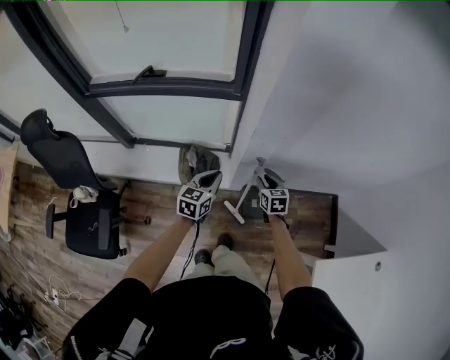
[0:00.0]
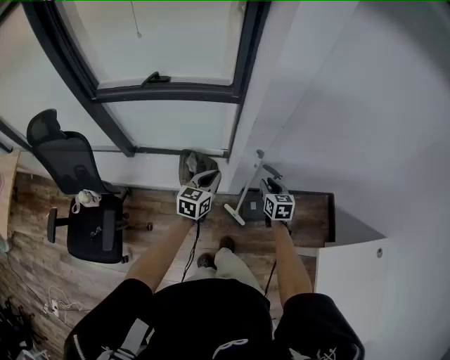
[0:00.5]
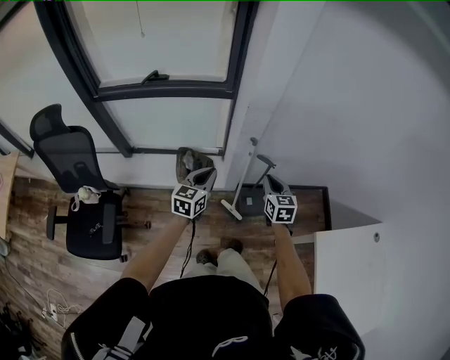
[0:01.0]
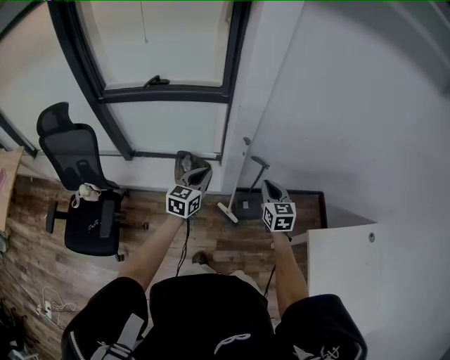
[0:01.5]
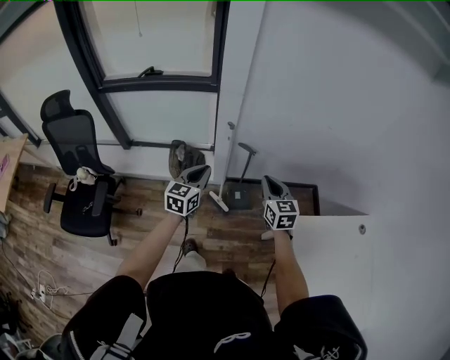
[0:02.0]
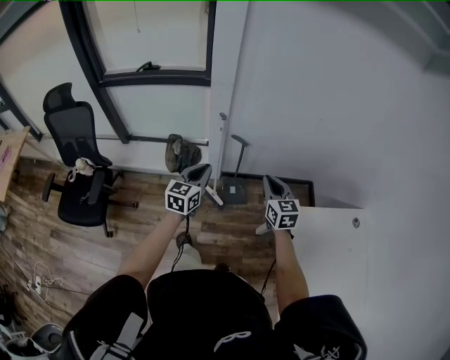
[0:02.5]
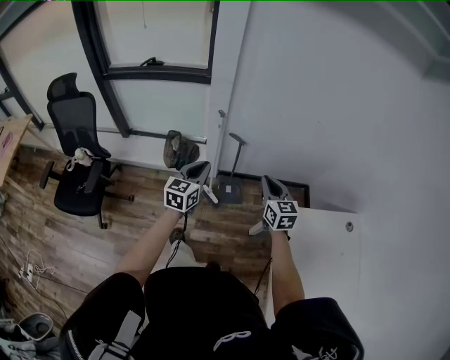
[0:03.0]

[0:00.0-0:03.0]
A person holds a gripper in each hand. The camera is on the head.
0:00.0 to 0:01.5: Both grippers move backward and upward, about 25 cm. The right gripper swivels about 20 degrees, and closes its fingers.
0:01.5 to 0:03.0: Both grippers travel together to the right and backward, roughly 25 cm.

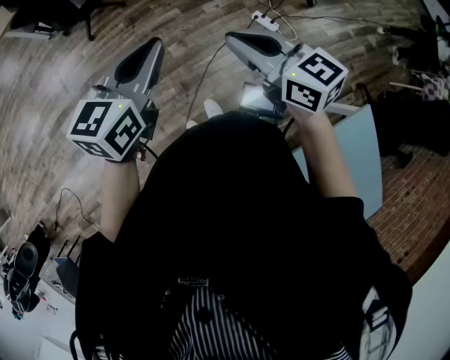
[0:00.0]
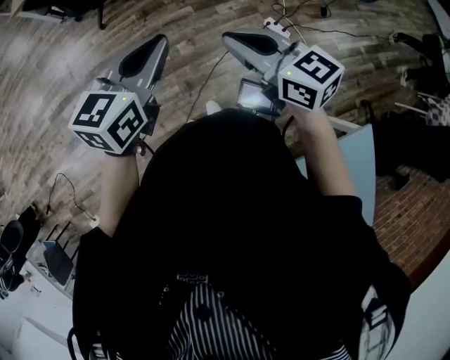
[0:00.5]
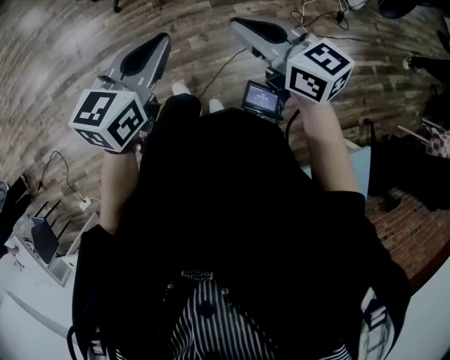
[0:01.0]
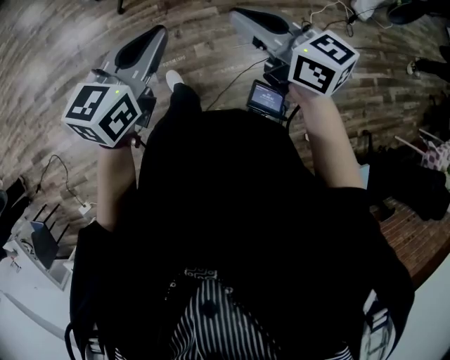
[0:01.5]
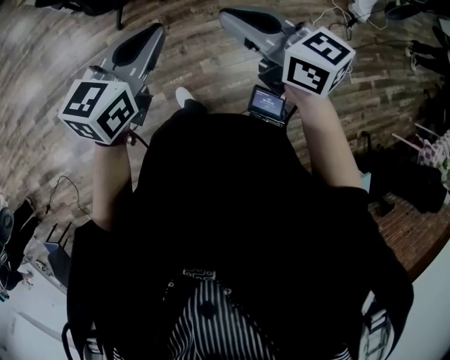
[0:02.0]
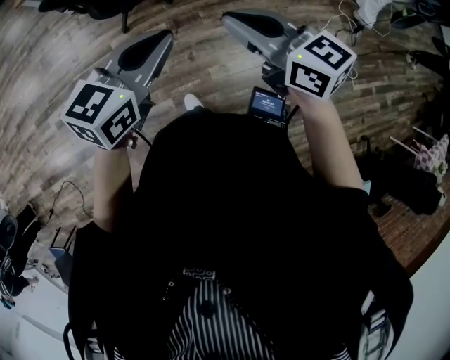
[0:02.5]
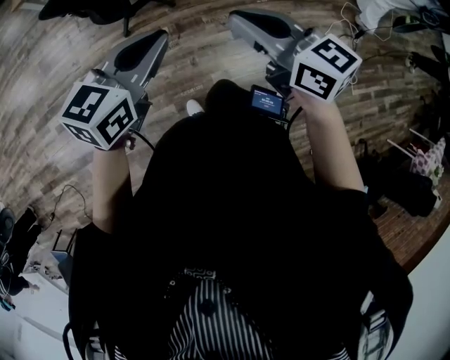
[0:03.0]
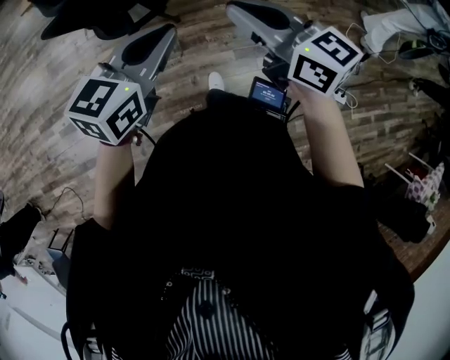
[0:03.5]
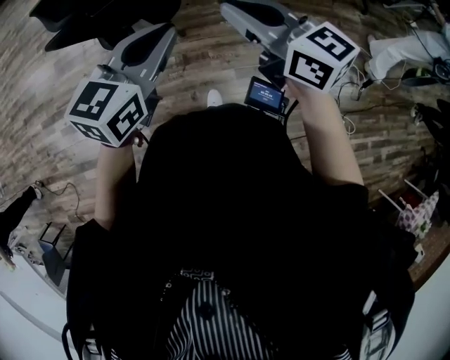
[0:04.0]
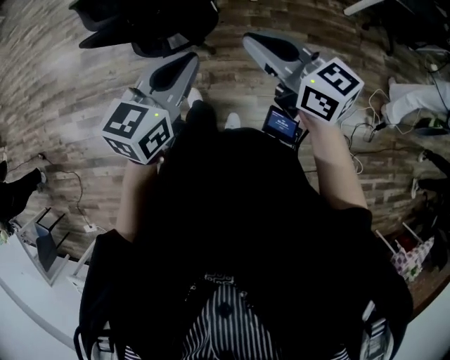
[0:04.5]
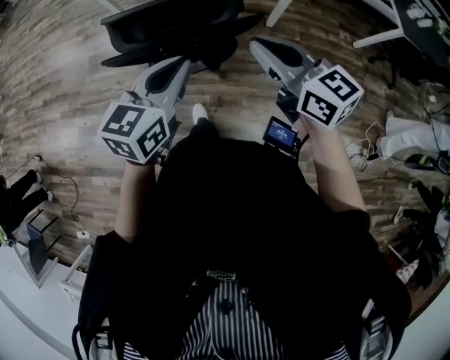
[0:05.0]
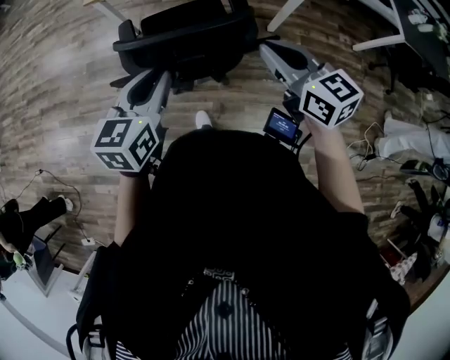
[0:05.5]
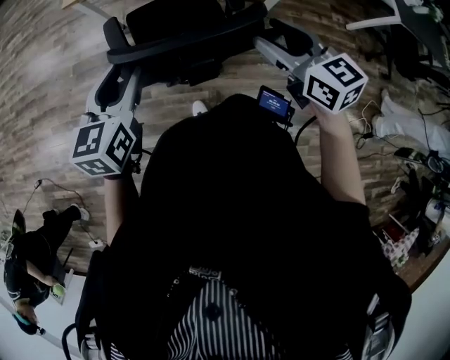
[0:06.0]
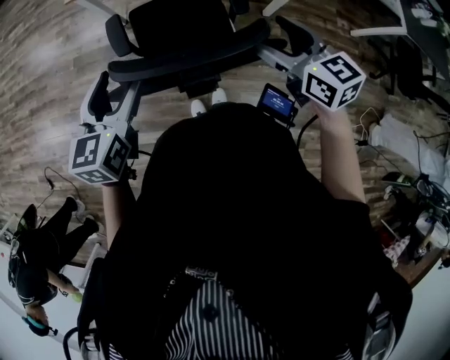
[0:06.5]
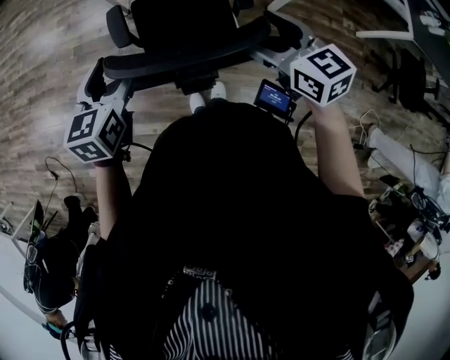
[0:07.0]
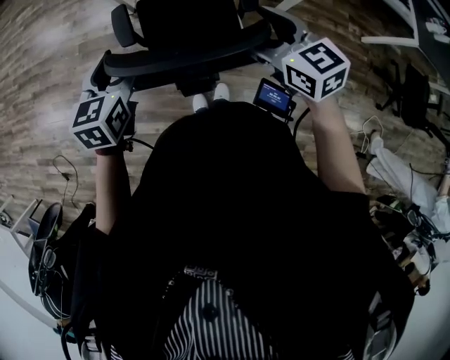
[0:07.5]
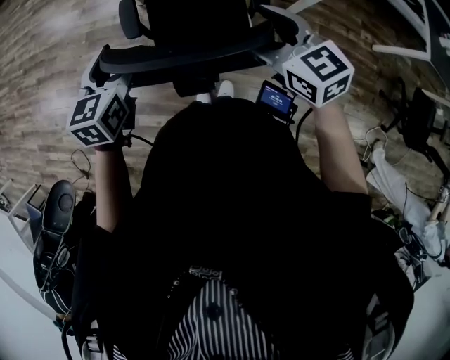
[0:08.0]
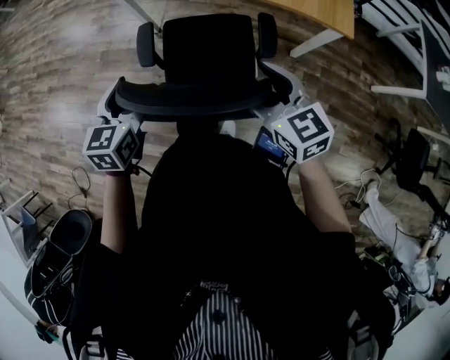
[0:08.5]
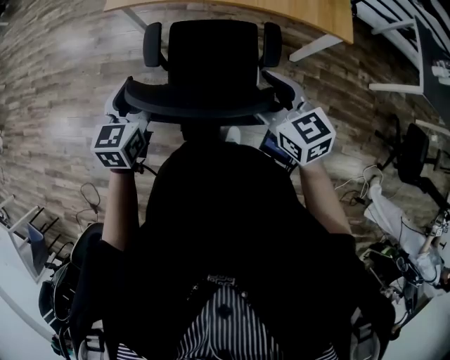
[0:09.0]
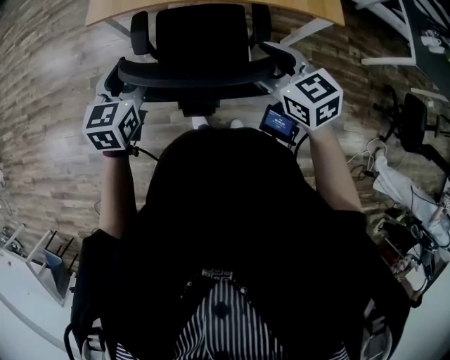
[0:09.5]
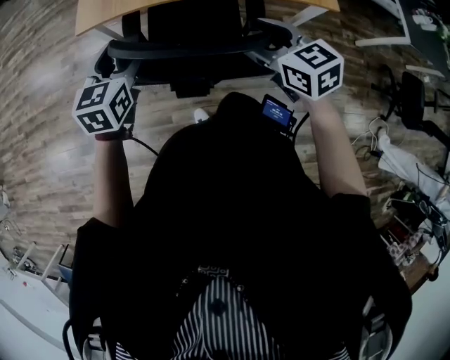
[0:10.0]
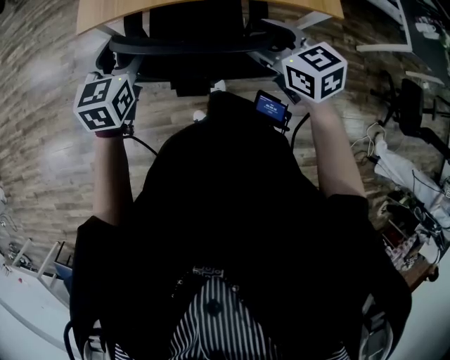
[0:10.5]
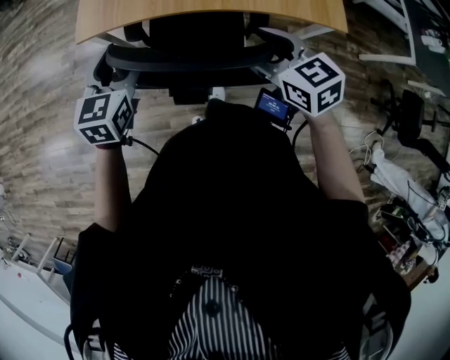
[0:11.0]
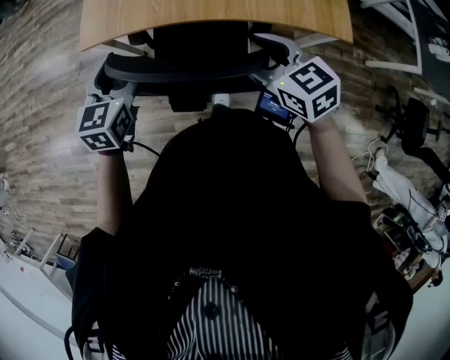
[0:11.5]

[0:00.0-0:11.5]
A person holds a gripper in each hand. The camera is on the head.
0:00.0 to 0:02.0: The grippers both shift forward and to the left by about 40 cm.
0:02.0 to 0:04.0: Both grippers move forward, about 35 cm.
0:04.0 to 0:06.0: The left gripper moves forward and to the left, approximately 50 cm, turns by roughly 30 degrees, and opens up; the right gripper travels forward by about 35 cm, and opens.
0:06.0 to 0:07.5: Both grippers travel together forward, roughly 5 cm. The left gripper opens its fingers. The right gripper opens up.
0:07.5 to 0:09.5: The two grippers go approximately 20 cm forward.
0:09.5 to 0:11.5: Both grippers travel together forward, roughly 20 cm.

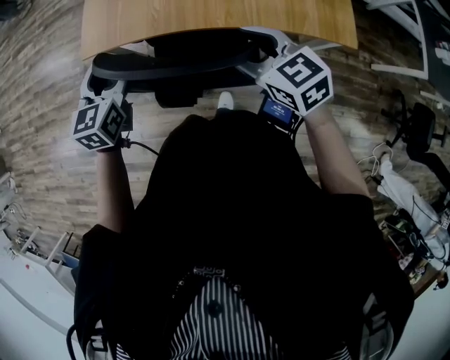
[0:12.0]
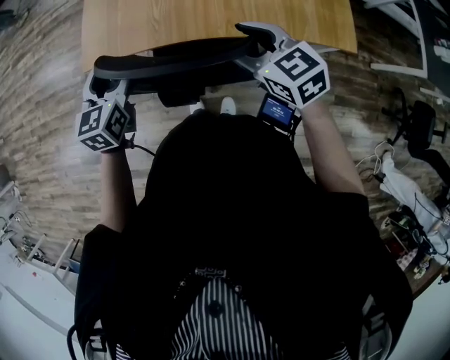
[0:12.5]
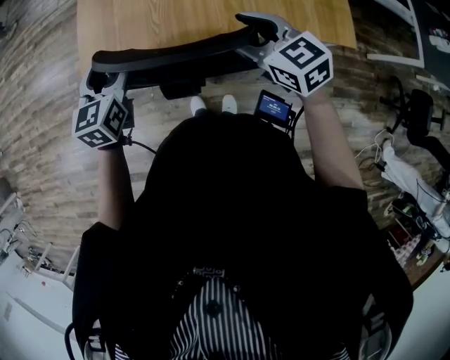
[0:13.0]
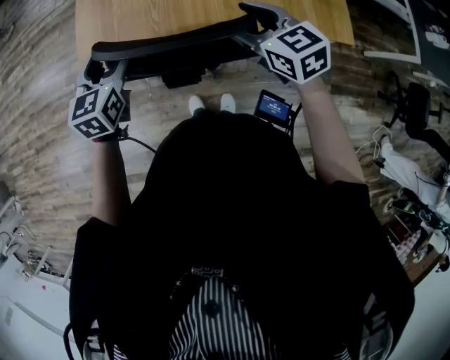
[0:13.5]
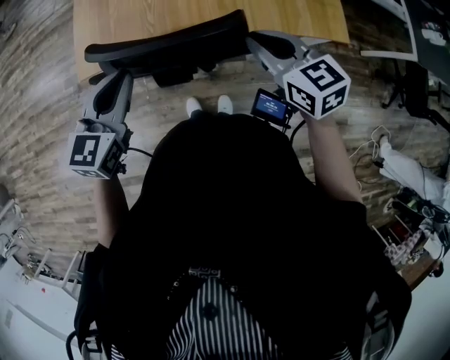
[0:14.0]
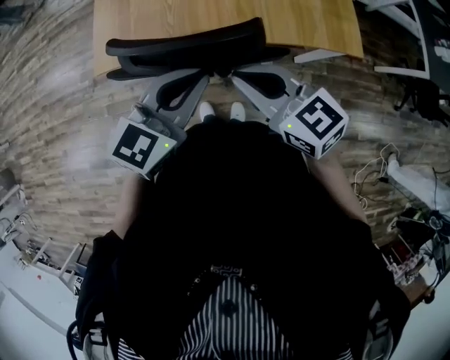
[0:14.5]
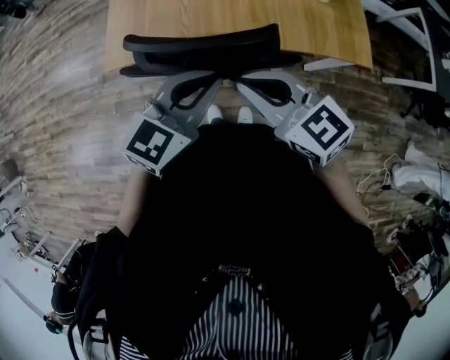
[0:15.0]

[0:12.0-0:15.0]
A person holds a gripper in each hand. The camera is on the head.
0:12.0 to 0:13.5: The grippers both shift forward by about 10 cm.
0:13.5 to 0:15.0: The left gripper moves to the right, backward and upward, some 20 cm, swivels about 30 degrees, and closes up. The right gripper is displaced backward, upward and to the left by roughly 15 cm, and closes.

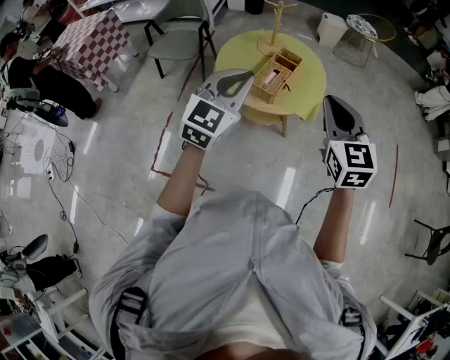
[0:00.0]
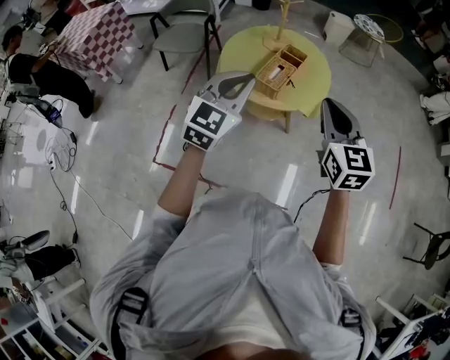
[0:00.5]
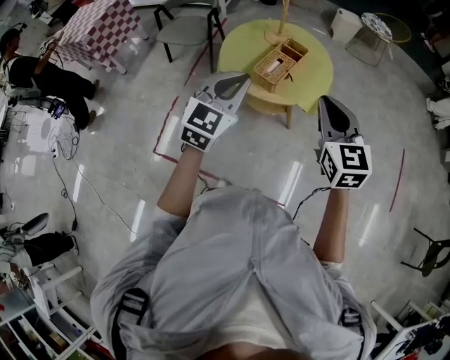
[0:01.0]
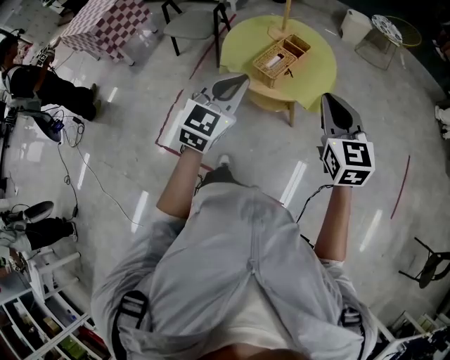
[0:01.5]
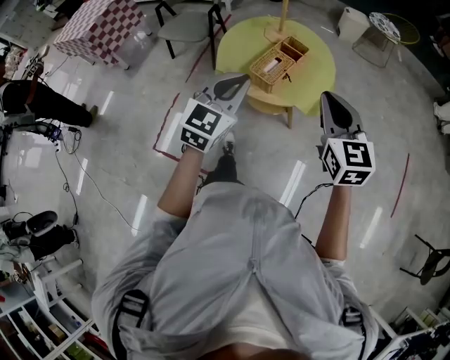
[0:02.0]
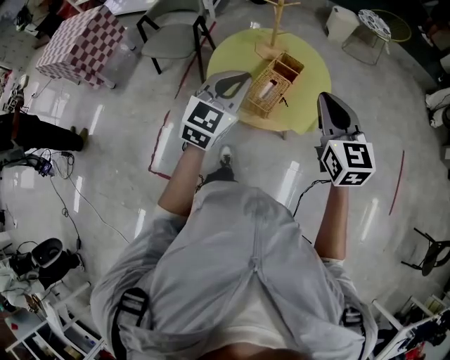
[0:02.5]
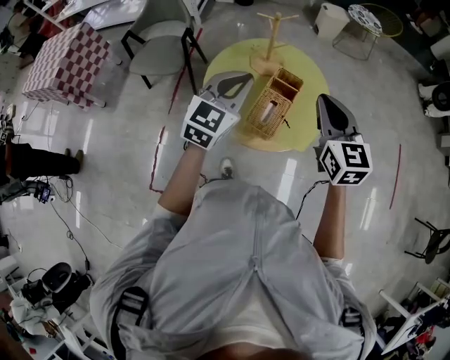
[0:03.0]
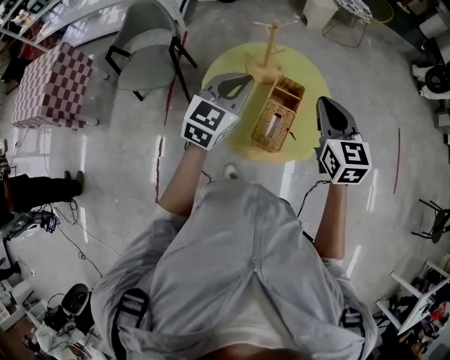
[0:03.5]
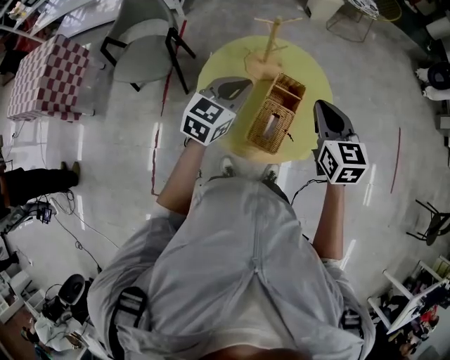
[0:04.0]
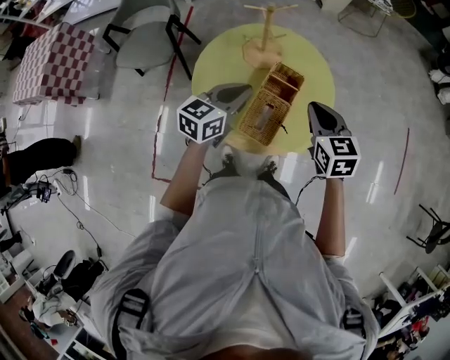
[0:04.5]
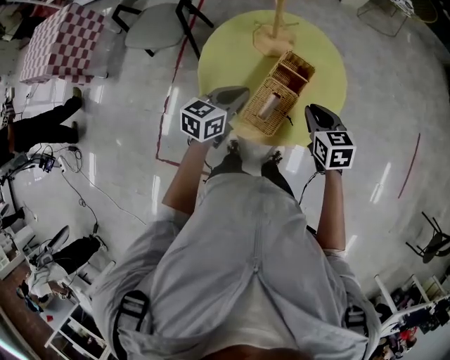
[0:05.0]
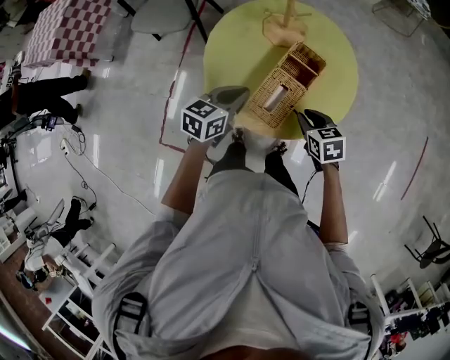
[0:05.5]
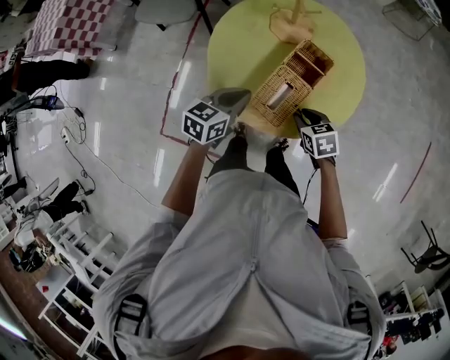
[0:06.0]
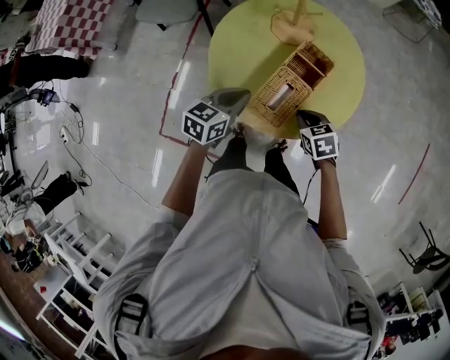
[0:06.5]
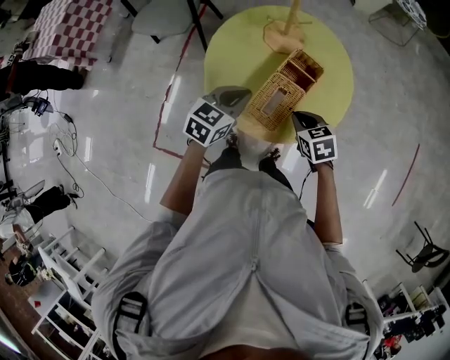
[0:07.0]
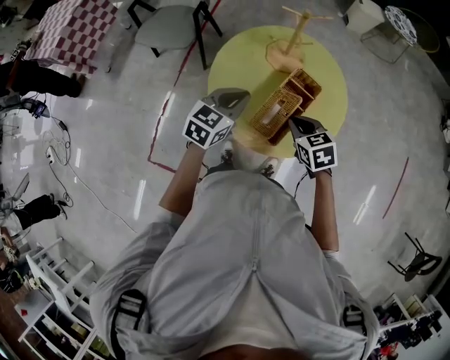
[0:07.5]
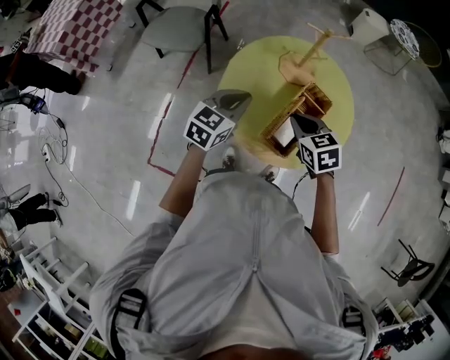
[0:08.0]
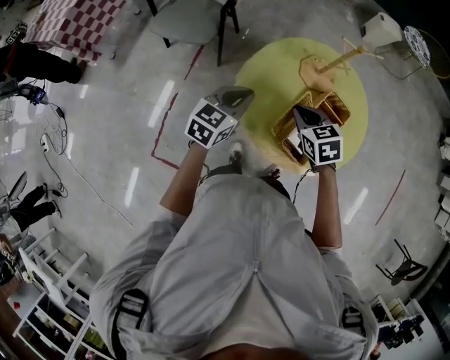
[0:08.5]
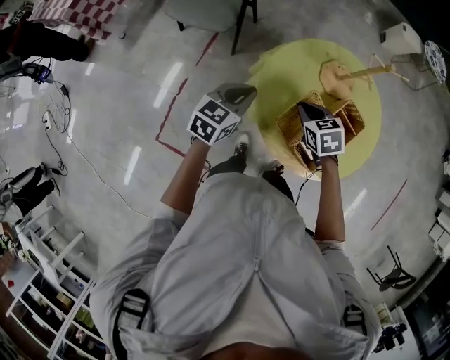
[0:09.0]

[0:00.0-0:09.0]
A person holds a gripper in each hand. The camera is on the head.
0:00.0 to 0:02.0: The right gripper moves approximately 10 cm; the left gripper moves downward, some 5 cm.
0:02.0 to 0:04.5: Both grippers travel together forward and downward, some 35 cm. The right gripper changes its angle by approximately 20 degrees. The left gripper changes its angle by about 40 degrees.
0:04.5 to 0:07.0: The left gripper travels downward and backward by approximately 10 cm, while the right gripper is displaced downward by about 15 cm, and turns by approximately 30 degrees.
0:07.0 to 0:09.0: Both grippers move to the left and forward, roughly 20 cm.
